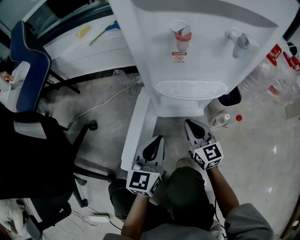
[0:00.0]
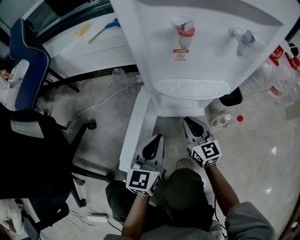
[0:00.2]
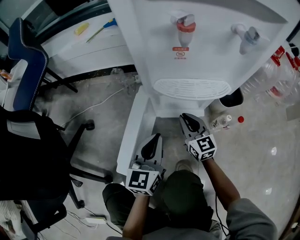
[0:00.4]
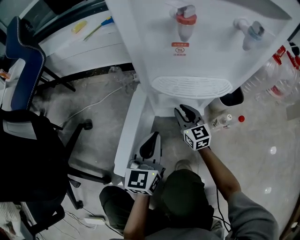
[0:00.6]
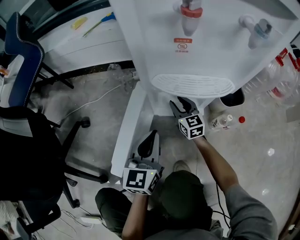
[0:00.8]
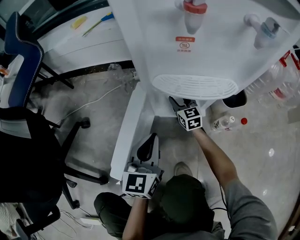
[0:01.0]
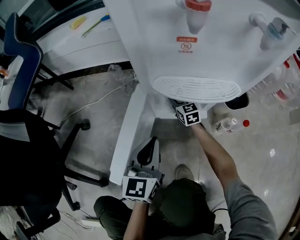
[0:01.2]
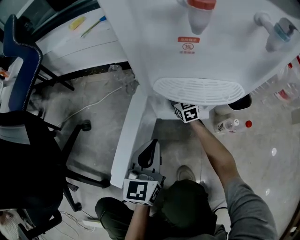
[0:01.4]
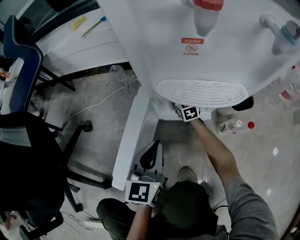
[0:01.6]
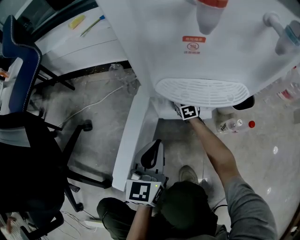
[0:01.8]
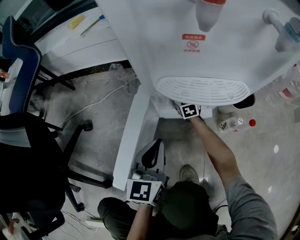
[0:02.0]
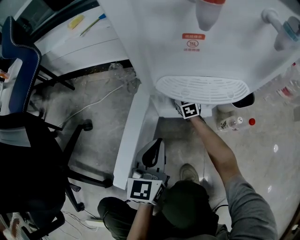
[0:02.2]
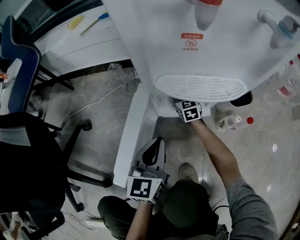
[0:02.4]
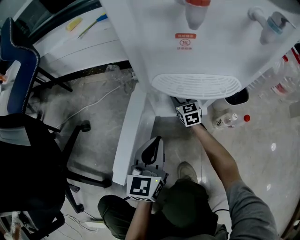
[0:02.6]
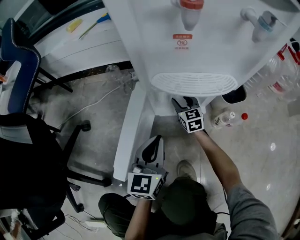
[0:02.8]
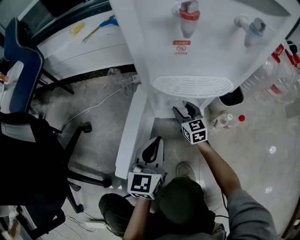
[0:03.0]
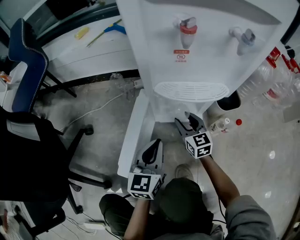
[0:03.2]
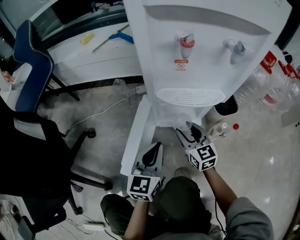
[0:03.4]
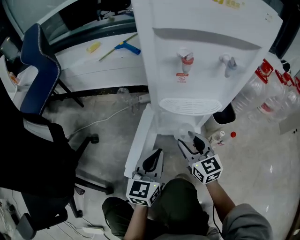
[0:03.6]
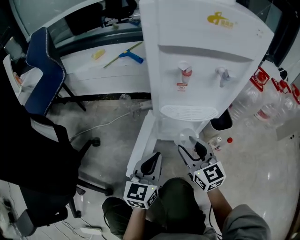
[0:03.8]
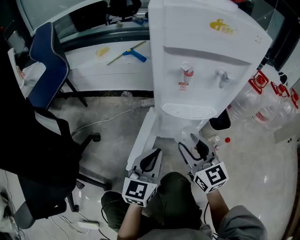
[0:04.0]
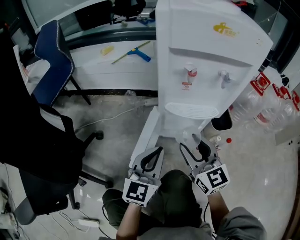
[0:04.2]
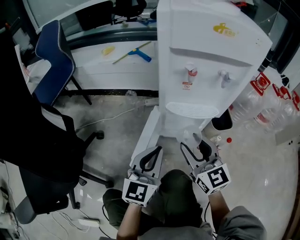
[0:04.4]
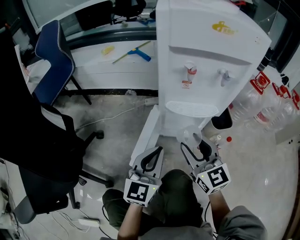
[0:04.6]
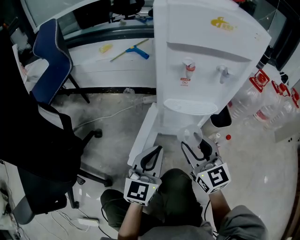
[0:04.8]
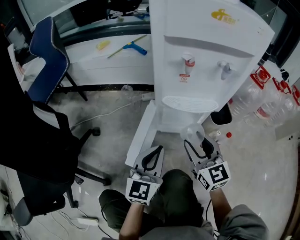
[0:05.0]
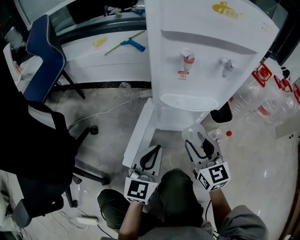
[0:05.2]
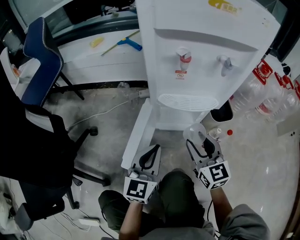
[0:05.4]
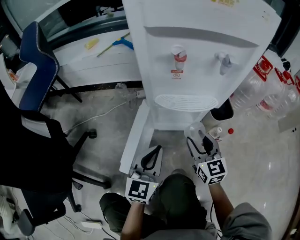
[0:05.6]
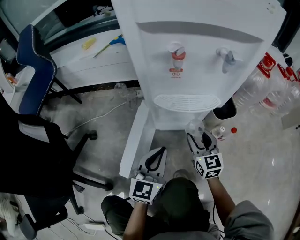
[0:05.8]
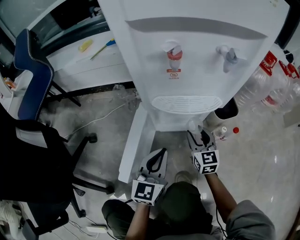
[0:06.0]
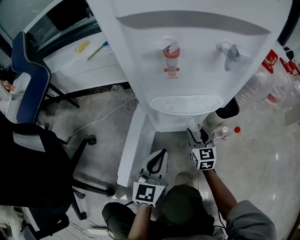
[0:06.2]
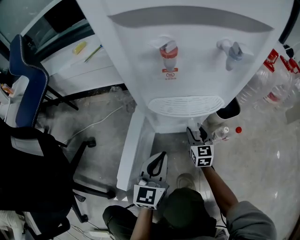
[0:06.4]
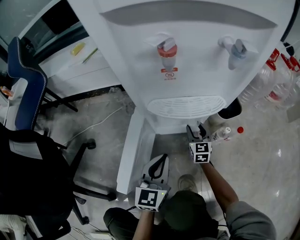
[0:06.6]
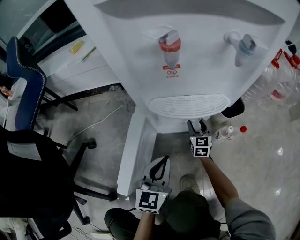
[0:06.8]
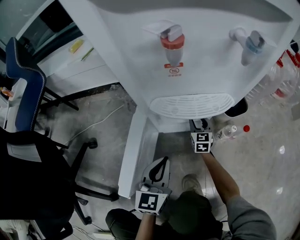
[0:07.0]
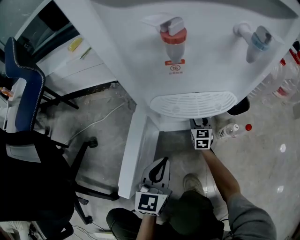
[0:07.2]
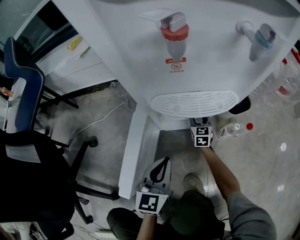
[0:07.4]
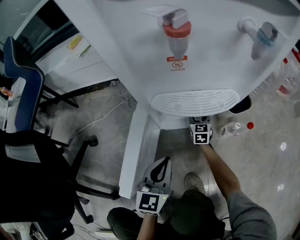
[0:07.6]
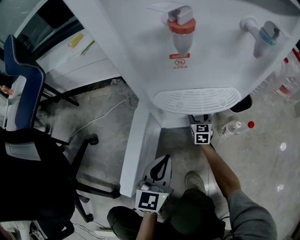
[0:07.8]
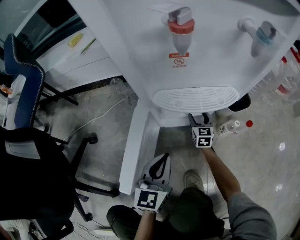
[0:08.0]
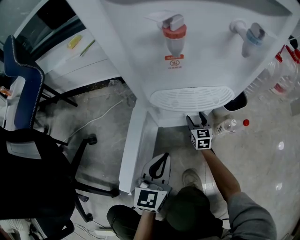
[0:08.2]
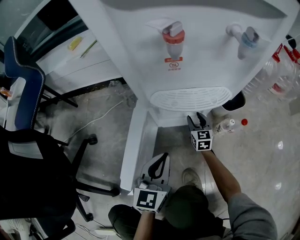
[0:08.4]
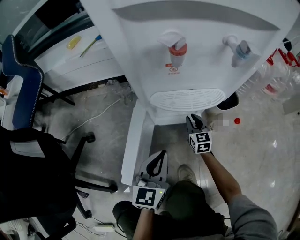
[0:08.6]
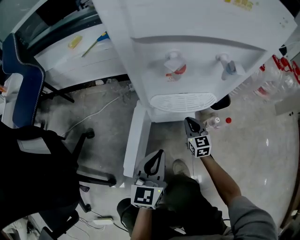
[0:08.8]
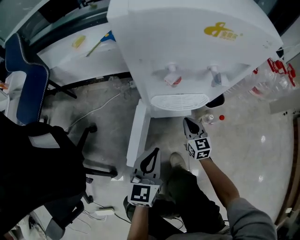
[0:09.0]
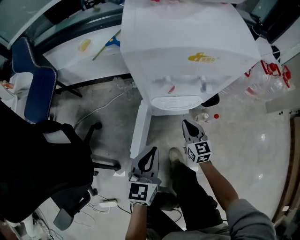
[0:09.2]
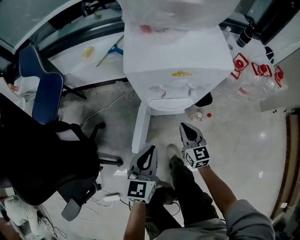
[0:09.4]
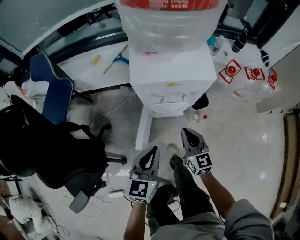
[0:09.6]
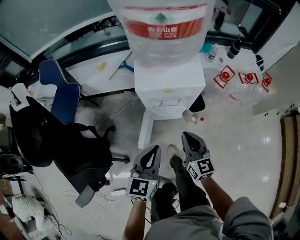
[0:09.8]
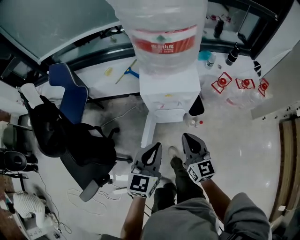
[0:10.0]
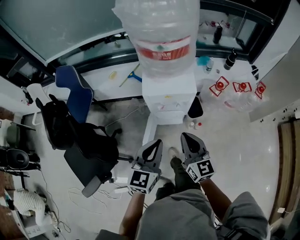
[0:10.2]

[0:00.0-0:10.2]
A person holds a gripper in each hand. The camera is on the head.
0:00.0 to 0:01.4: The right gripper travels forward and downward by roughly 30 cm, and opens. Meanwhile the left gripper shifts by some 5 cm.
0:01.4 to 0:03.0: The right gripper heads backward and upward, covering about 15 cm.
0:03.0 to 0:04.4: The right gripper goes roughly 35 cm upward and backward. Meanwhile the left gripper shifts about 15 cm upward.
0:04.4 to 0:05.8: The left gripper goes some 10 cm downward, while the right gripper travels downward and to the right by about 20 cm.
0:05.8 to 0:07.2: The right gripper moves downward and forward, some 25 cm. The left gripper goes roughly 10 cm downward.
0:07.2 to 0:08.8: The right gripper travels upward and backward by about 15 cm, and closes up. The left gripper is displaced upward by some 10 cm.
0:08.8 to 0:10.2: The two grippers go about 60 cm upward. The right gripper turns by approximately 20 degrees.

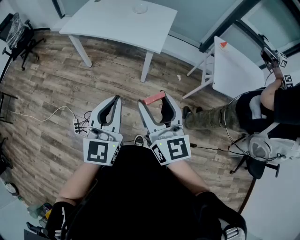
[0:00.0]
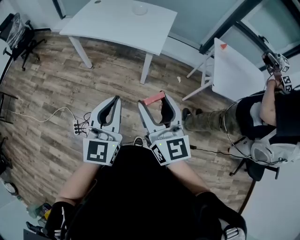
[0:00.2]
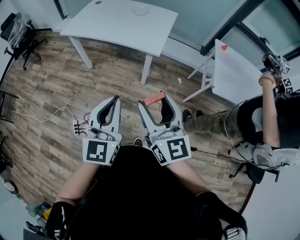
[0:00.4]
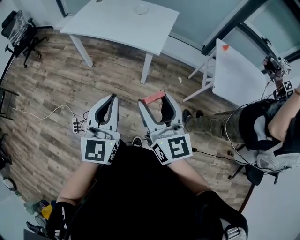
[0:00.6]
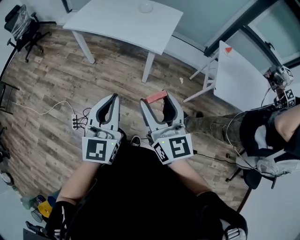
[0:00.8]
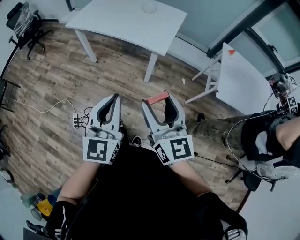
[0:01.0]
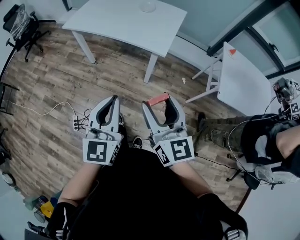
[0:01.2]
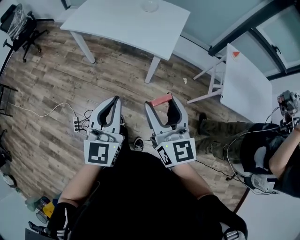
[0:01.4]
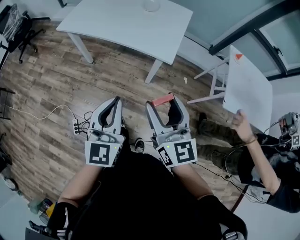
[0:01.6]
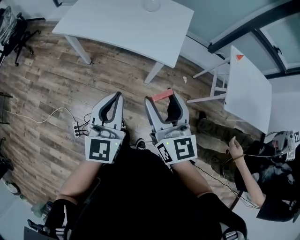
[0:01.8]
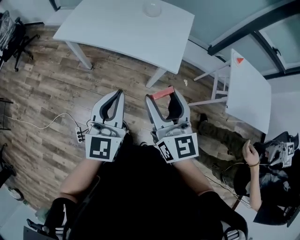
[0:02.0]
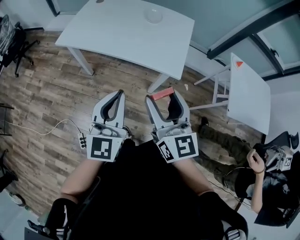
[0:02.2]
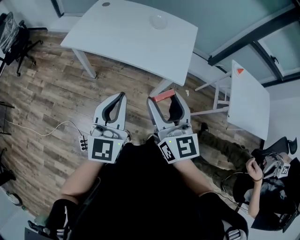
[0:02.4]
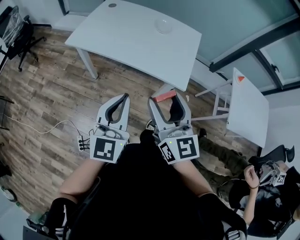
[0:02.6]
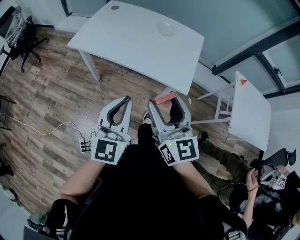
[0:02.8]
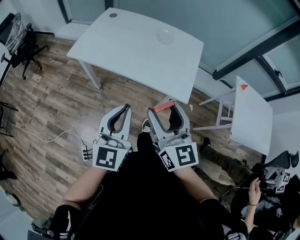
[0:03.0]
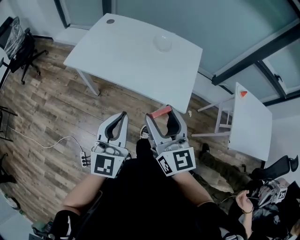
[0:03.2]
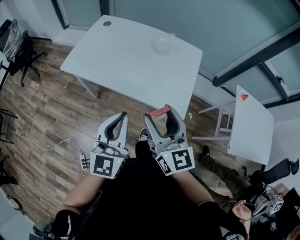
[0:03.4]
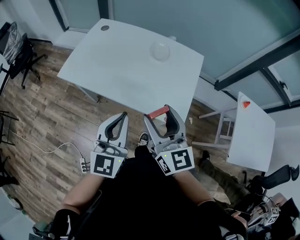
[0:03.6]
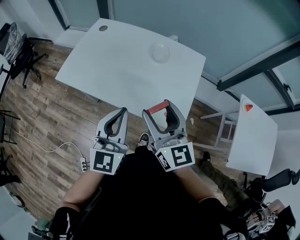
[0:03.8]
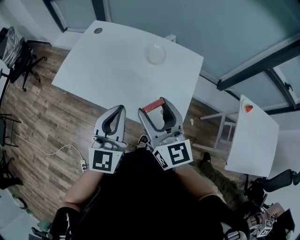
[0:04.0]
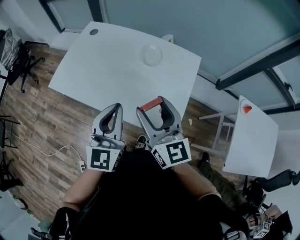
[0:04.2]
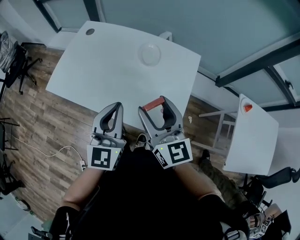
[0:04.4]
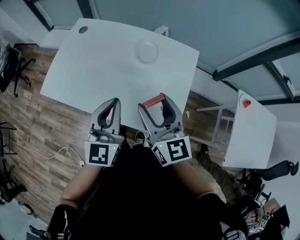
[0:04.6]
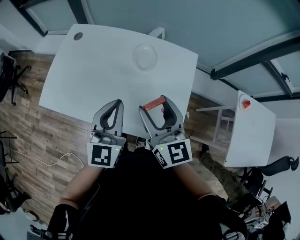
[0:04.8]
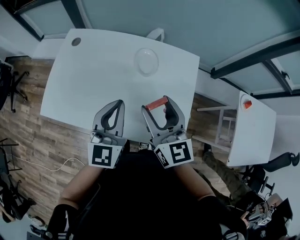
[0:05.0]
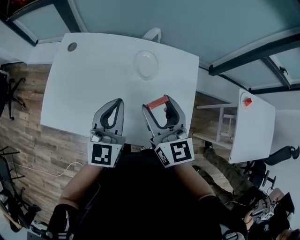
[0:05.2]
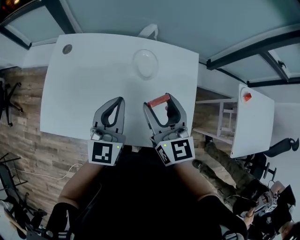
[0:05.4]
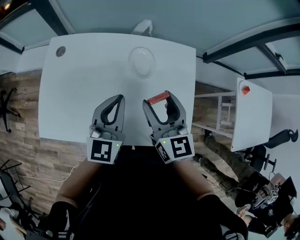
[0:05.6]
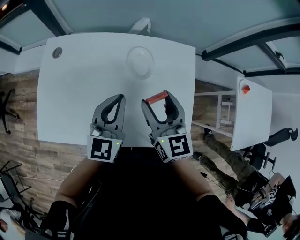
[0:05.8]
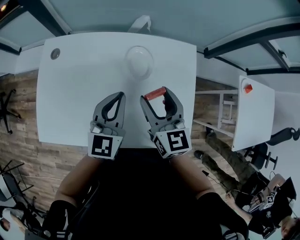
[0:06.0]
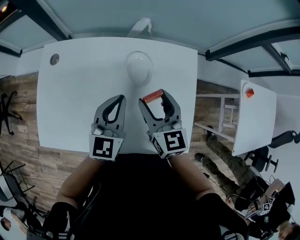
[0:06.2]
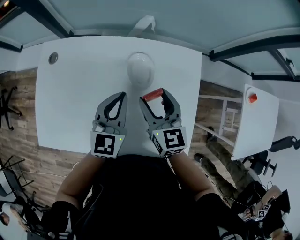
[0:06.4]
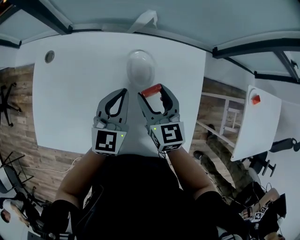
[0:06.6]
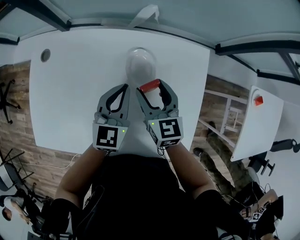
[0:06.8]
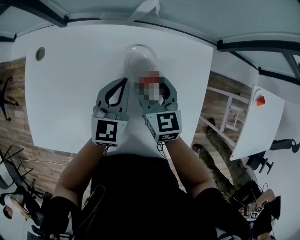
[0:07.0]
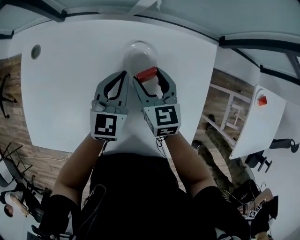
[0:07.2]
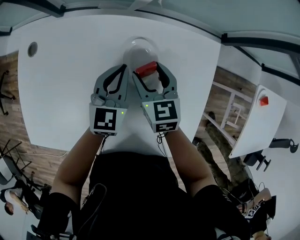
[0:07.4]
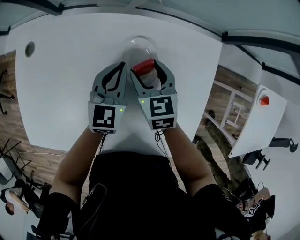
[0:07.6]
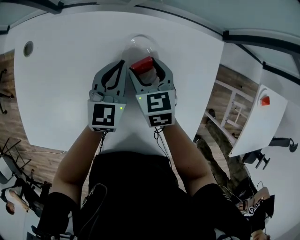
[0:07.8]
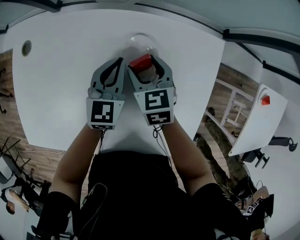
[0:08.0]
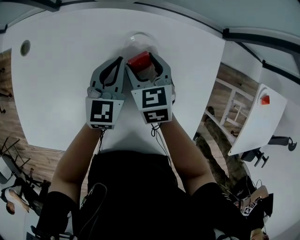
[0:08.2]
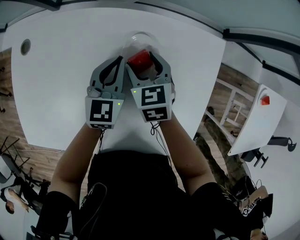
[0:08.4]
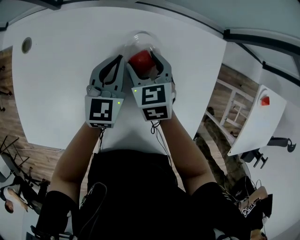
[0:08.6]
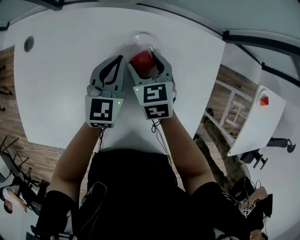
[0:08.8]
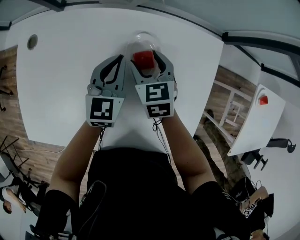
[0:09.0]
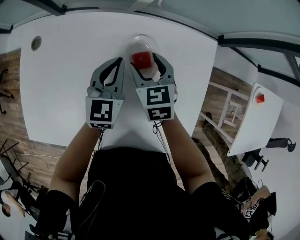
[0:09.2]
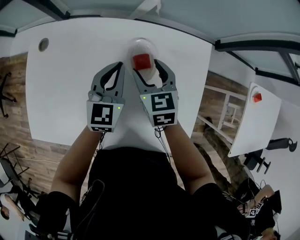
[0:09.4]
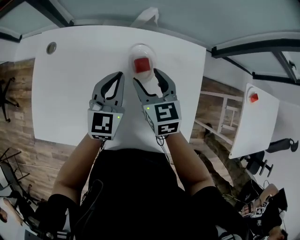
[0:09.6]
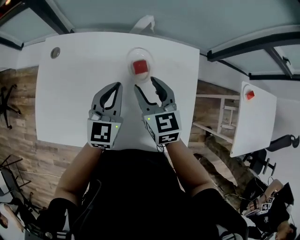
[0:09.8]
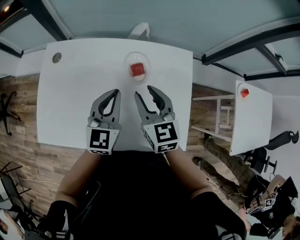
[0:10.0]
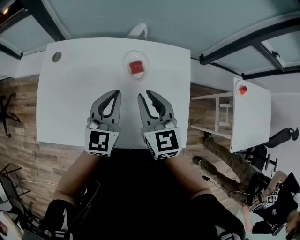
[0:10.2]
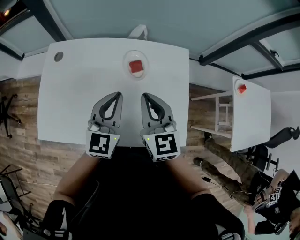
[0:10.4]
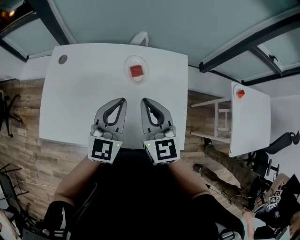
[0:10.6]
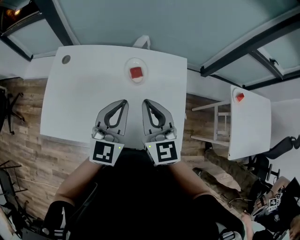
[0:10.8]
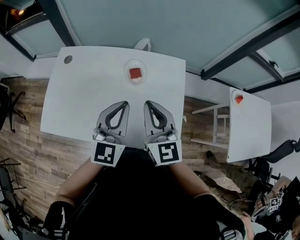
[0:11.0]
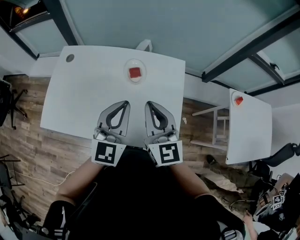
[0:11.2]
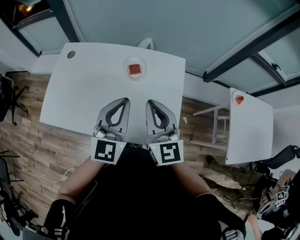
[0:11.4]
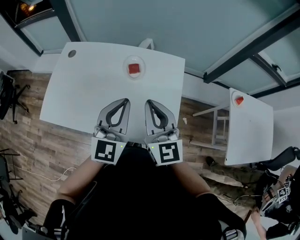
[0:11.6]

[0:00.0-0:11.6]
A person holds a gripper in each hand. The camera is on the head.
0:00.0 to 0:01.4: The grippers both shift forward by about 10 cm.
0:01.4 to 0:02.8: The grippers both shift forward and to the left by some 20 cm.
0:02.8 to 0:04.4: Both grippers travel together forward, roughly 25 cm.
0:04.4 to 0:05.8: Both grippers move forward, about 20 cm. The left gripper rotates some 20 degrees, while the right gripper rotates approximately 20 degrees.
0:05.8 to 0:07.2: The left gripper is displaced forward and downward by about 20 cm. The right gripper shifts some 20 cm downward and forward.
0:07.2 to 0:08.8: The right gripper ends up approximately 5 cm from where it was.
0:08.8 to 0:10.2: The two grippers go about 25 cm upward and backward. The right gripper rotates roughly 30 degrees, and closes its fingers.
0:10.2 to 0:11.6: Both grippers travel together backward, to the right and upward, about 15 cm.

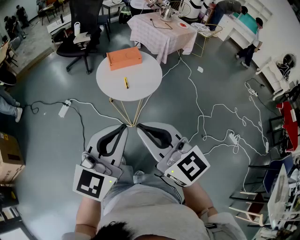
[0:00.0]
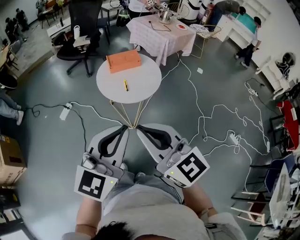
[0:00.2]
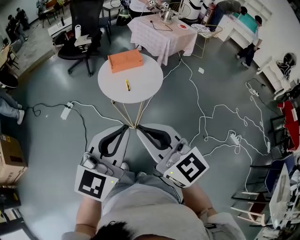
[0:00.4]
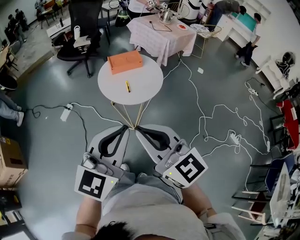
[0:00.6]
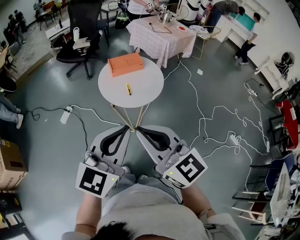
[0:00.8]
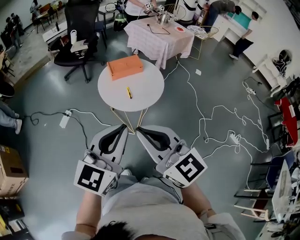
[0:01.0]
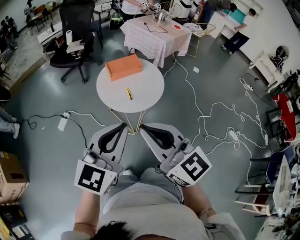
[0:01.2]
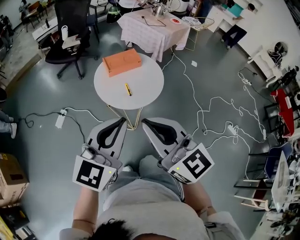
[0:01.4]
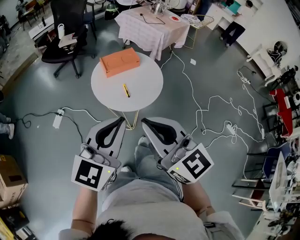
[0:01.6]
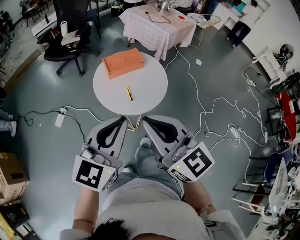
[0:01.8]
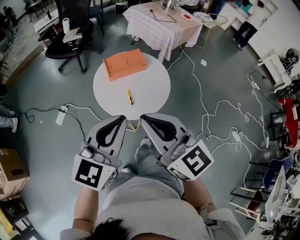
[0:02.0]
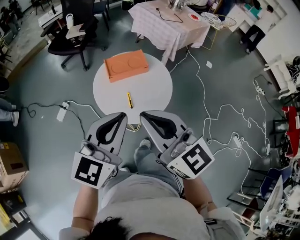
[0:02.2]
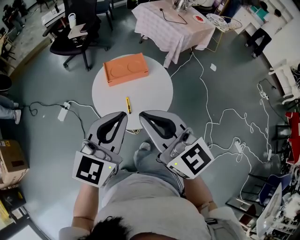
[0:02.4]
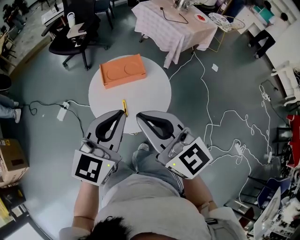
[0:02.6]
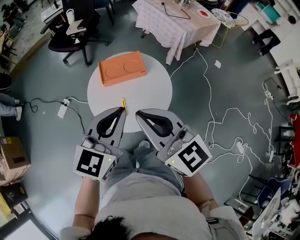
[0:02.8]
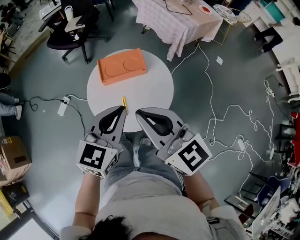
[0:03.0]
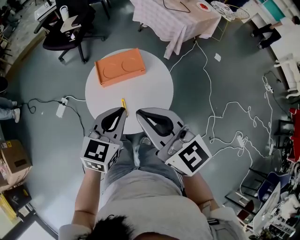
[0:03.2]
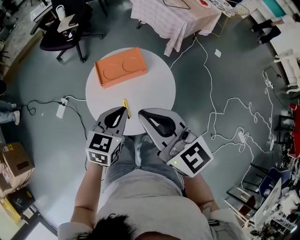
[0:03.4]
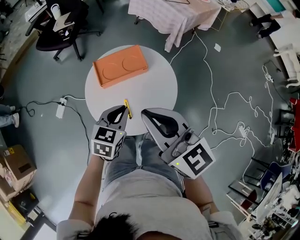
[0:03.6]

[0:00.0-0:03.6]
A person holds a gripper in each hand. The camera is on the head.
0:00.0 to 0:01.8: The two grippers go roughly 15 cm forward.
0:01.8 to 0:03.6: The left gripper shifts some 35 cm forward and downward, and angles its fingers downward, by roughly 30 degrees; the right gripper goes about 25 cm forward.
